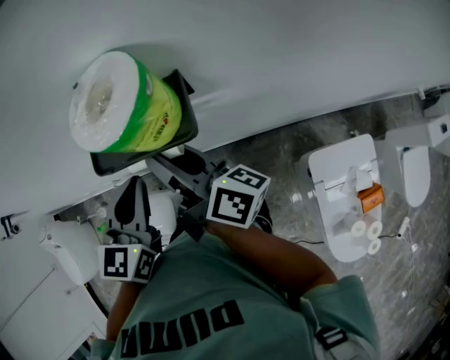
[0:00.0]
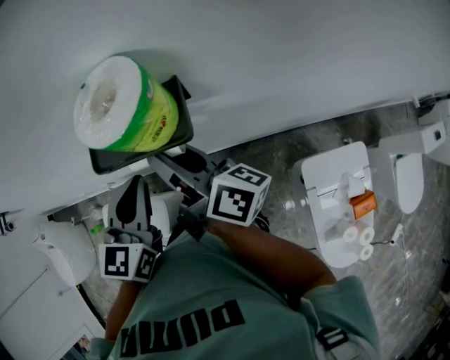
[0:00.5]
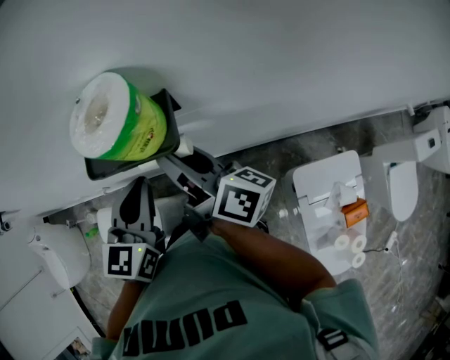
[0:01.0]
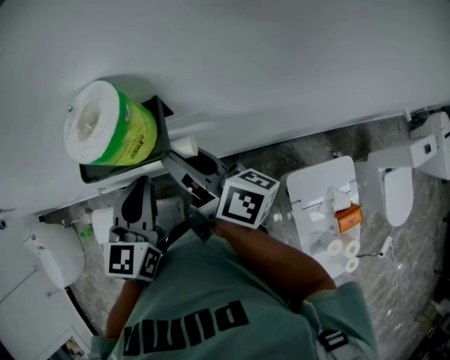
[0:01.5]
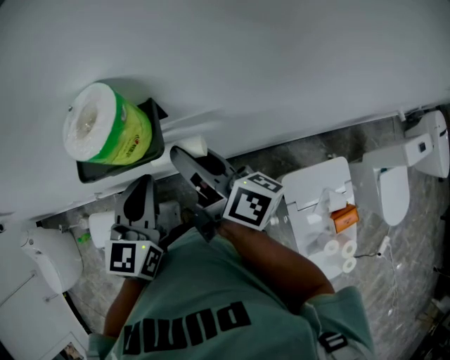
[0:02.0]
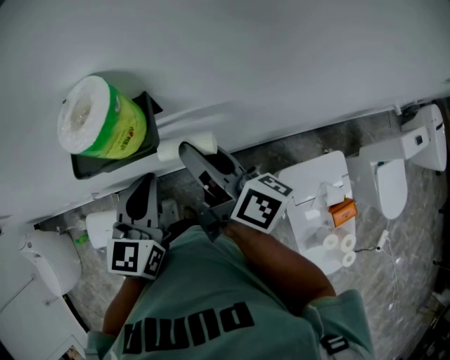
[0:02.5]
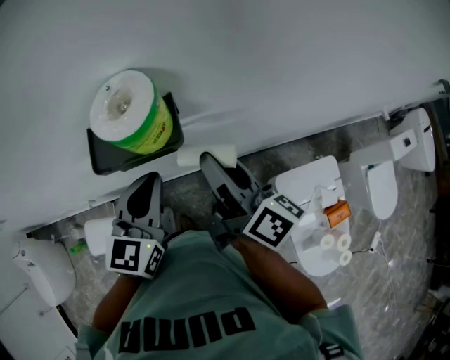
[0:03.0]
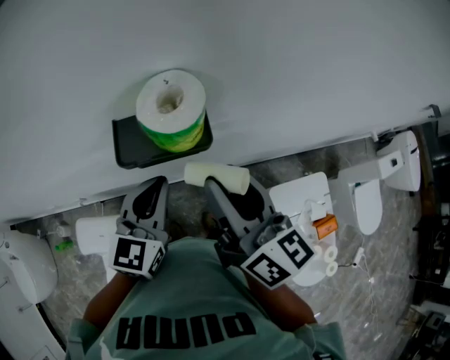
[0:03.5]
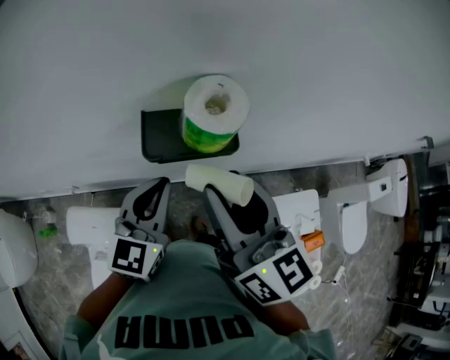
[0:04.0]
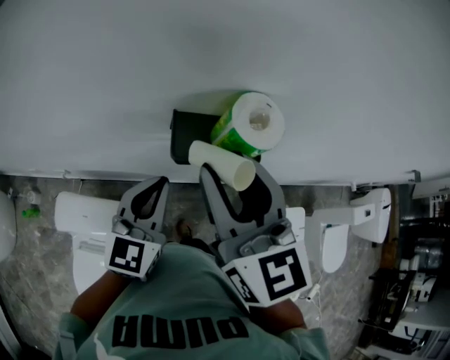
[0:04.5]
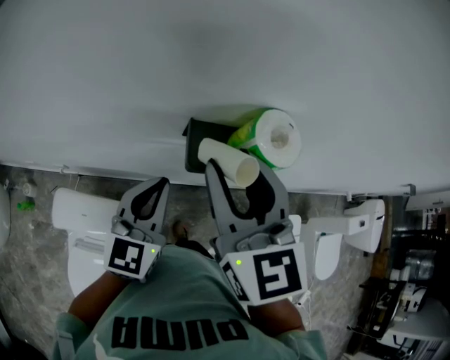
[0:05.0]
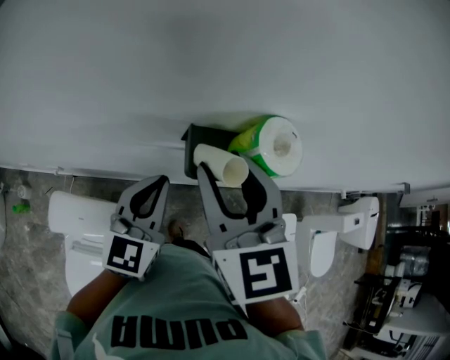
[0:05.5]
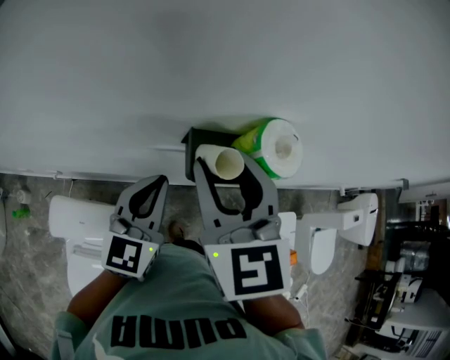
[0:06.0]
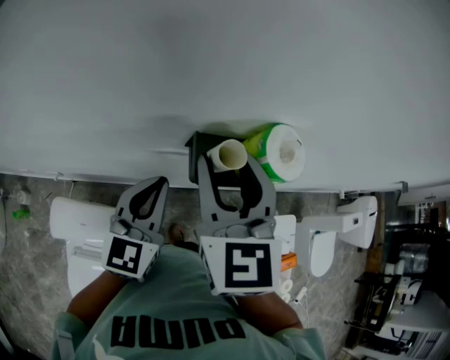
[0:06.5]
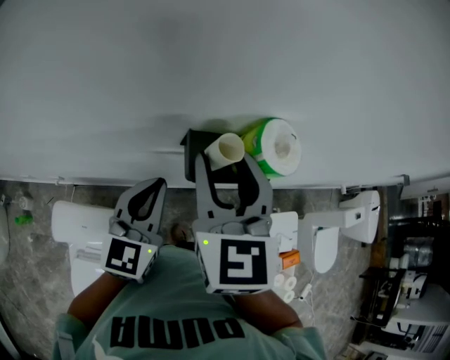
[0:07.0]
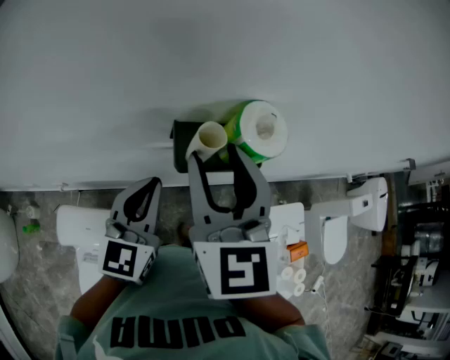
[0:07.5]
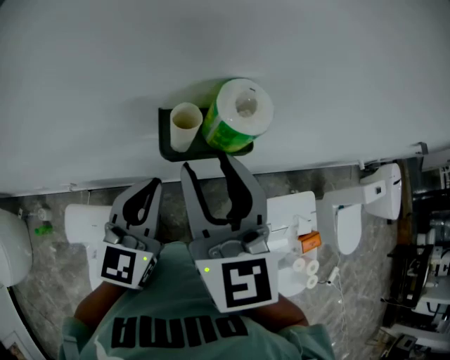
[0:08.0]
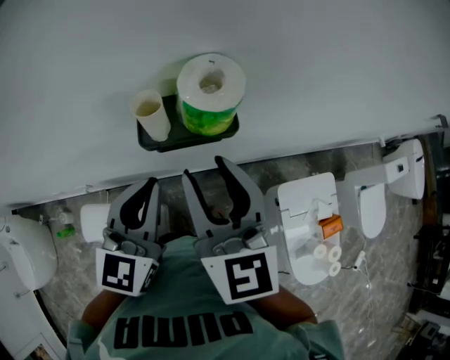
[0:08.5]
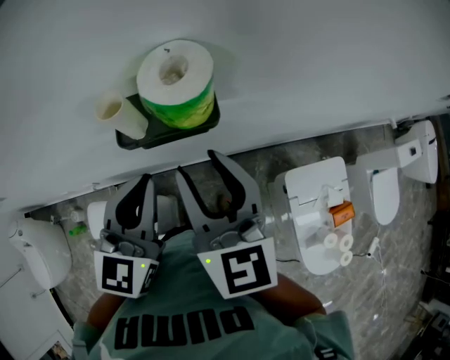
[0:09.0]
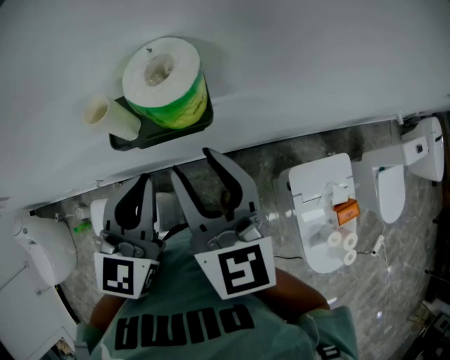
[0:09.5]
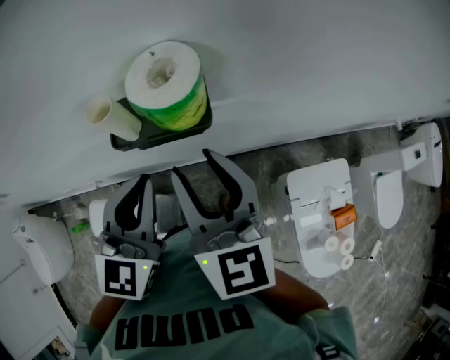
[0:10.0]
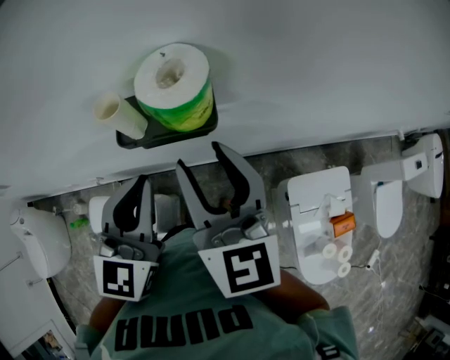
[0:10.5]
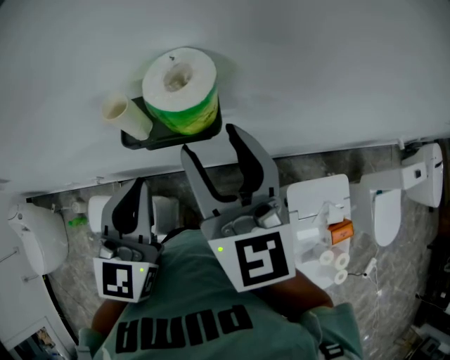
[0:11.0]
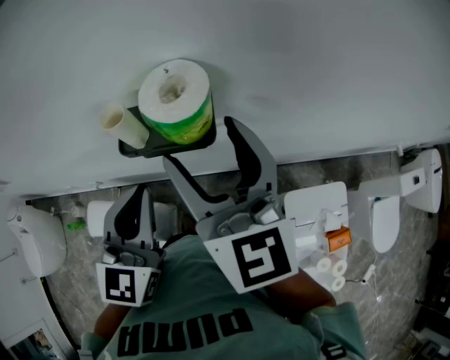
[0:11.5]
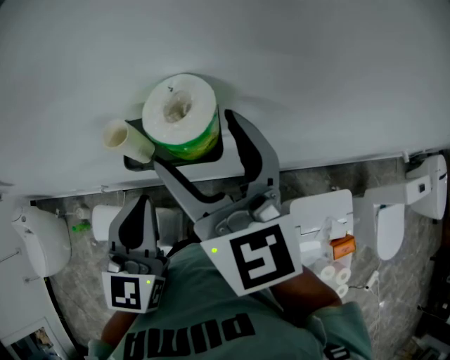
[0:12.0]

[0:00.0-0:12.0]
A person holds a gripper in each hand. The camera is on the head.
0:00.0 to 0:02.0: Both grippers travel together to the right, some 10 cm.
0:02.0 to 0:04.0: The left gripper moves to the left, some 5 cm. The right gripper travels upward, backward and to the left by approximately 15 cm, and rotates around the line of its fingers by some 50 degrees, counterclockwise from behind.
0:04.0 to 0:06.0: The right gripper travels to the left and forward by some 15 cm, and turns by about 40 degrees. The left gripper is displaced to the left by approximately 10 cm.
0:06.0 to 0:08.0: The left gripper changes place by roughly 5 cm; the right gripper changes place by about 5 cm.
0:08.0 to 0:10.0: The right gripper goes roughly 10 cm to the right and downward. The left gripper shifts some 5 cm to the right.
0:10.0 to 0:12.0: The right gripper moves upward and forward, about 10 cm, and opens.

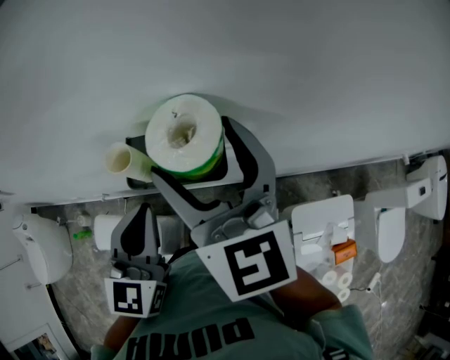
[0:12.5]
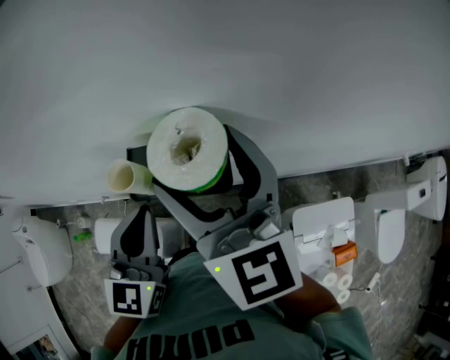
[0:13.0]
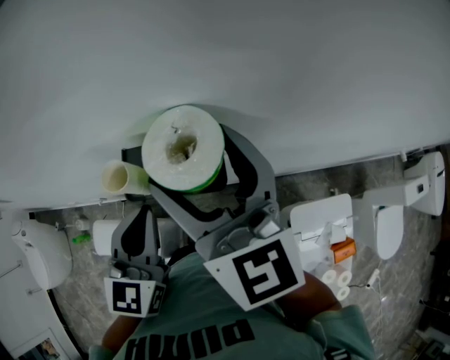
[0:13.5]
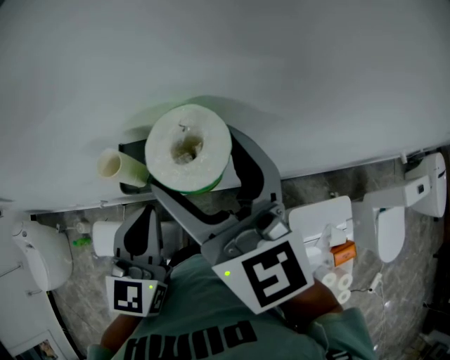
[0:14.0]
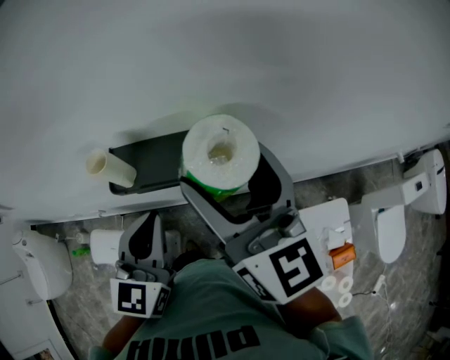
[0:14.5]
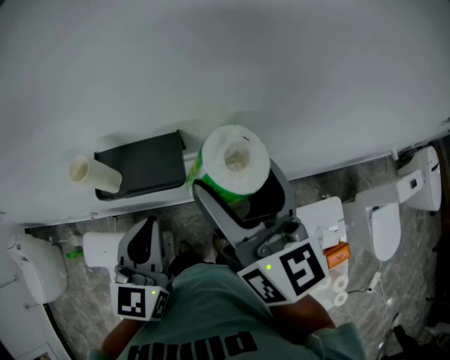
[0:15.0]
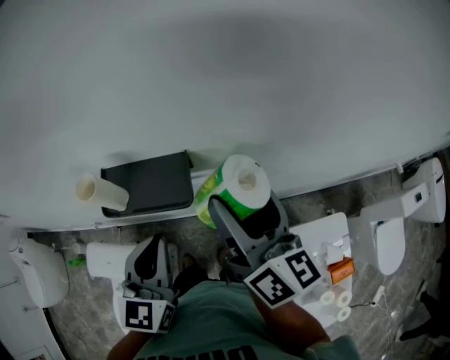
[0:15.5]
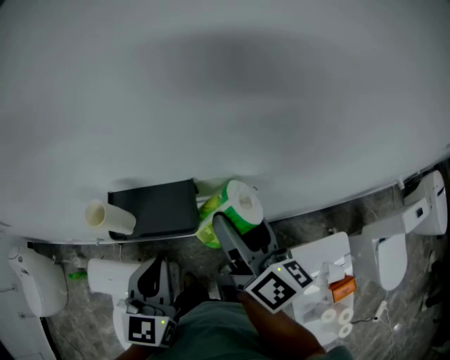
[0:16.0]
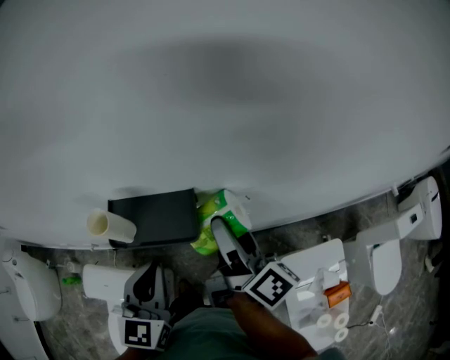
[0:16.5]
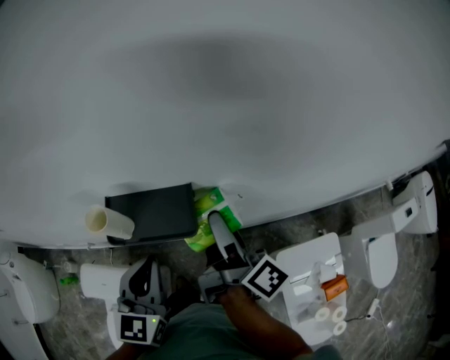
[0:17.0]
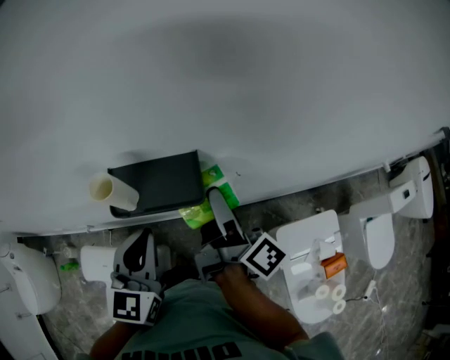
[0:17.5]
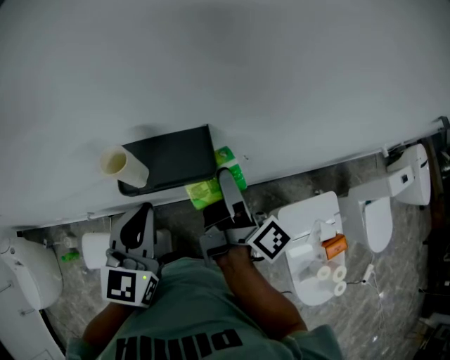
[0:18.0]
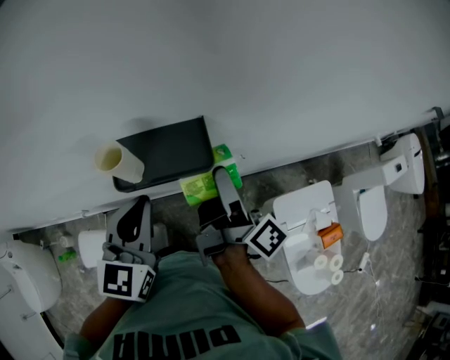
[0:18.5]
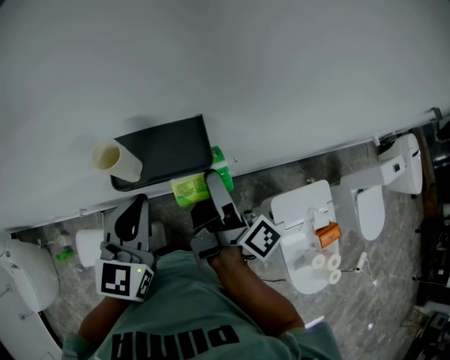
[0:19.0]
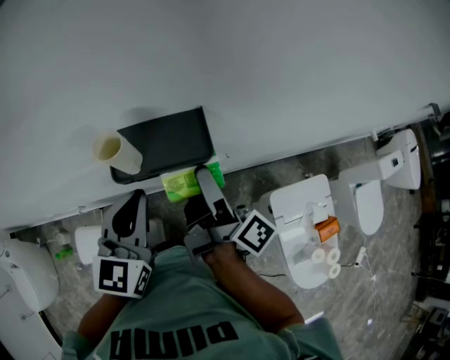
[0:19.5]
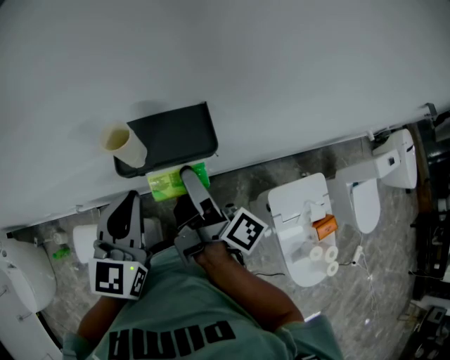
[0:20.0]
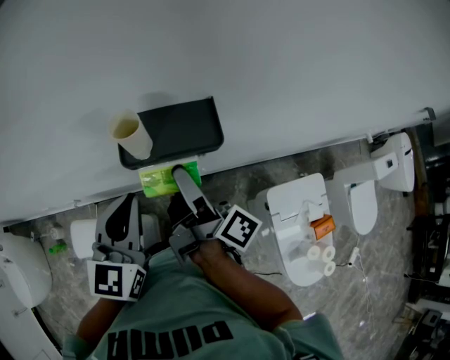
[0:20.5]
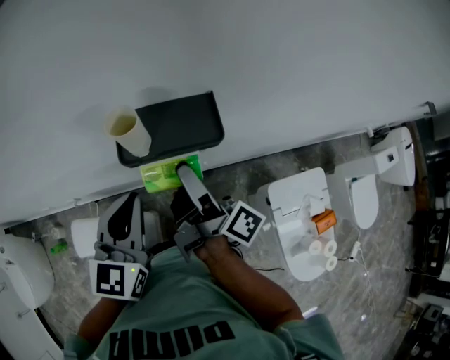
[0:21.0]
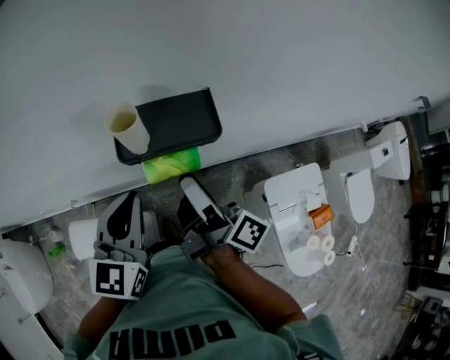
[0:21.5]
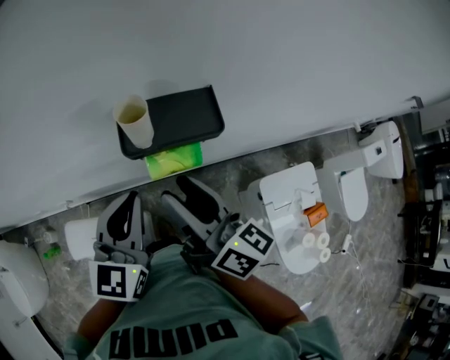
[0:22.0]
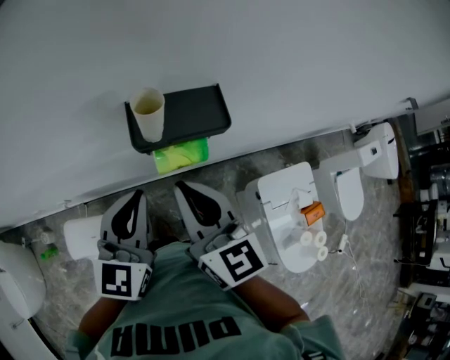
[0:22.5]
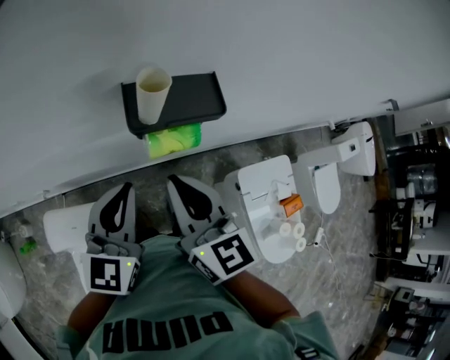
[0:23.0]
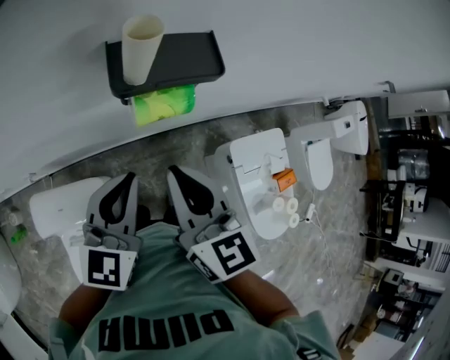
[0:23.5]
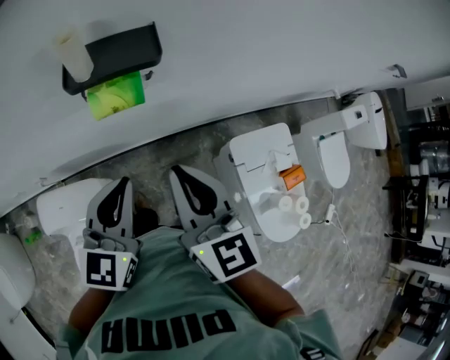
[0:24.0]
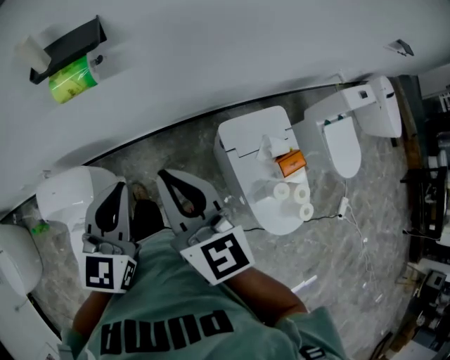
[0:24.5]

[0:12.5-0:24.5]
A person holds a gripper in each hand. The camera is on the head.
0:12.5 to 0:14.5: The left gripper is displaced to the right by some 5 cm; the right gripper heads to the right, covering some 10 cm.
0:14.5 to 0:16.5: The right gripper heads downward, covering roughly 15 cm, and rolls clockwise, seen from behind, by some 50 degrees, while the left gripper ends up about 5 cm from where it was.
0:16.5 to 0:18.5: The right gripper shifts by roughly 5 cm, and changes its angle by about 20 degrees.
0:18.5 to 0:20.5: The right gripper is displaced to the left by roughly 10 cm.
0:20.5 to 0:22.5: The right gripper moves backward, about 5 cm, rolls counterclockwise, seen from behind, by some 70 degrees, and closes up.
0:22.5 to 0:24.5: The grippers both shift to the right and backward by approximately 25 cm.

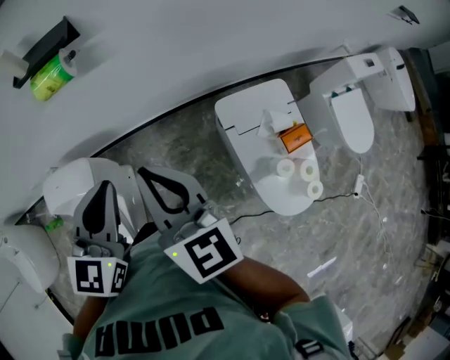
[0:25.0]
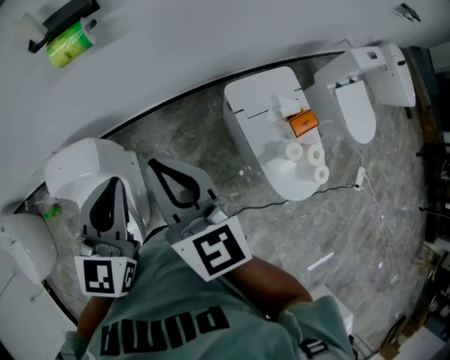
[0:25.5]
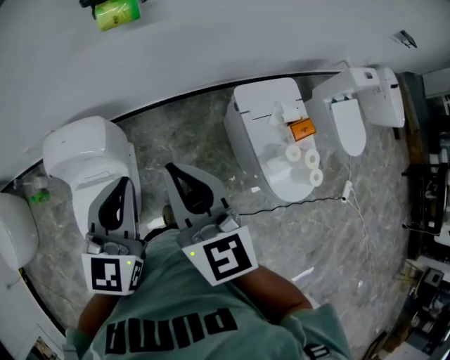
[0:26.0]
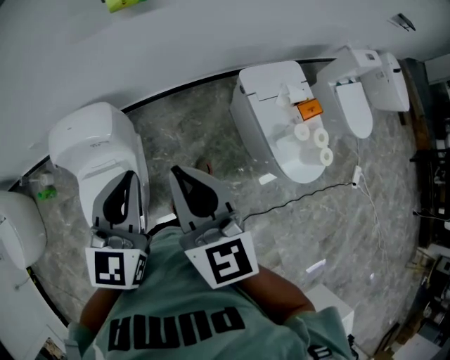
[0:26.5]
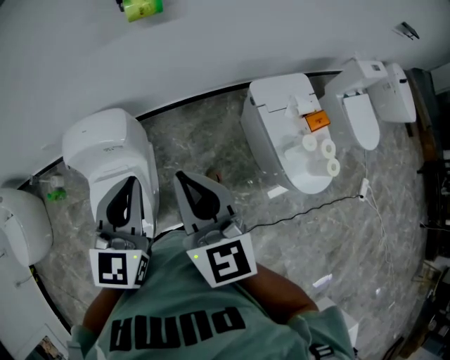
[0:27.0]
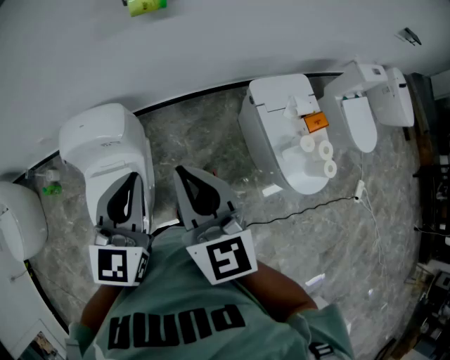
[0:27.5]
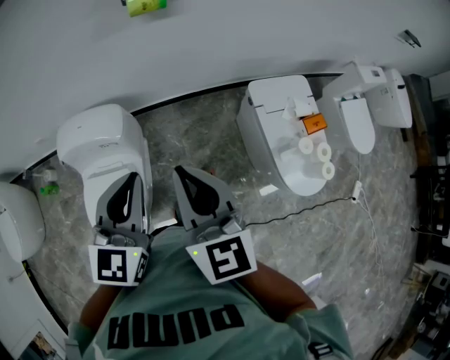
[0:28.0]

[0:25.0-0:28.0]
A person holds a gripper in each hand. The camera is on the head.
0:25.0 to 0:26.5: Both grippers move backward and to the left, about 25 cm.
0:26.5 to 0:28.0: The grippers stay close to where they were, moving slightly.
